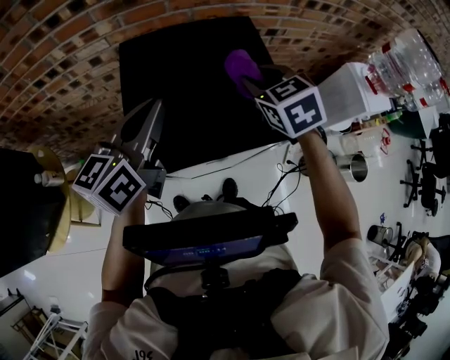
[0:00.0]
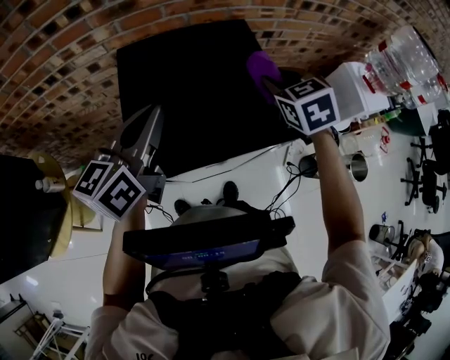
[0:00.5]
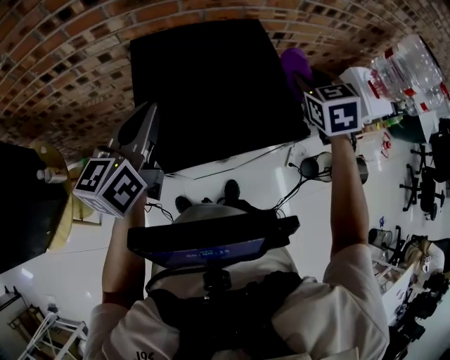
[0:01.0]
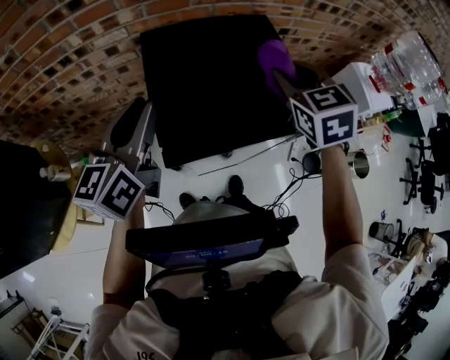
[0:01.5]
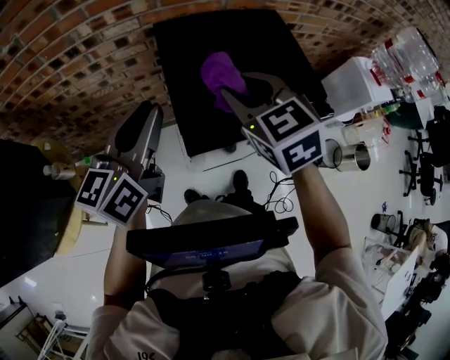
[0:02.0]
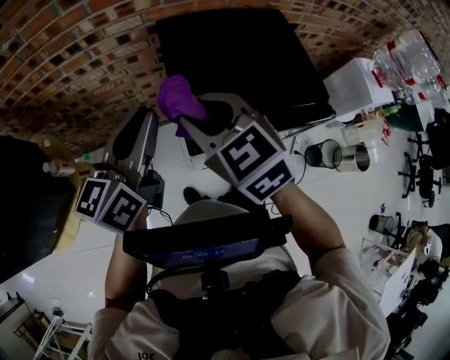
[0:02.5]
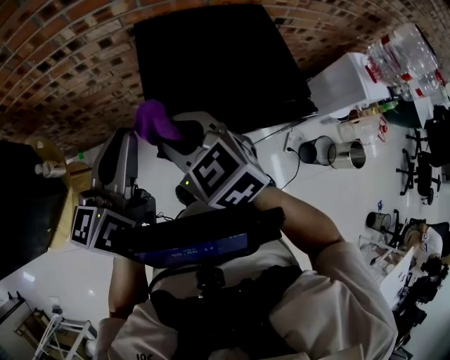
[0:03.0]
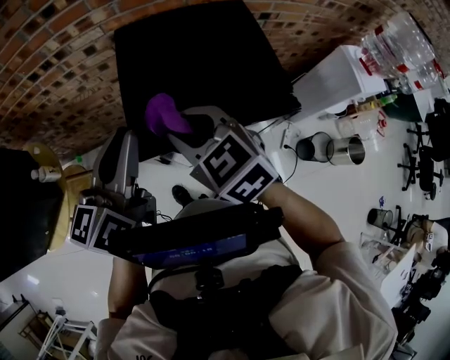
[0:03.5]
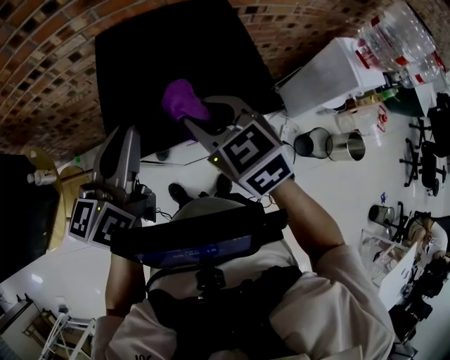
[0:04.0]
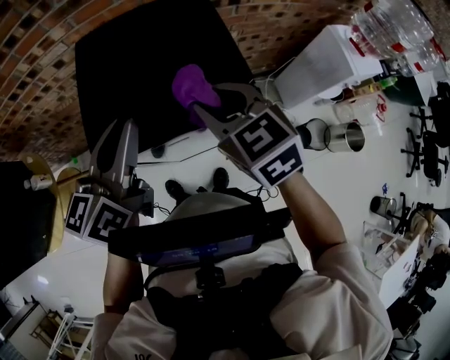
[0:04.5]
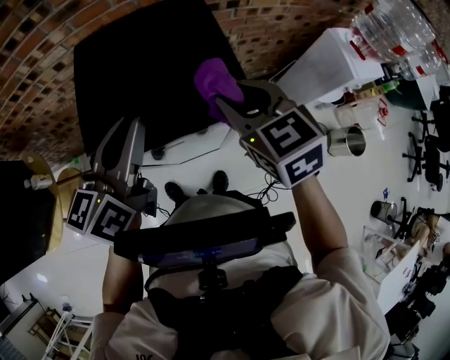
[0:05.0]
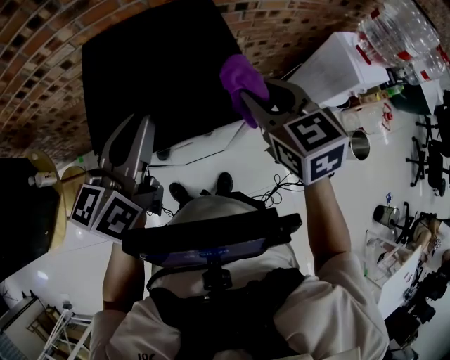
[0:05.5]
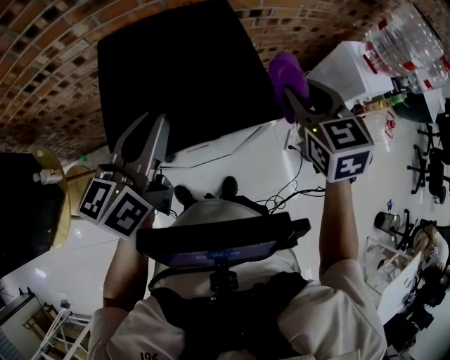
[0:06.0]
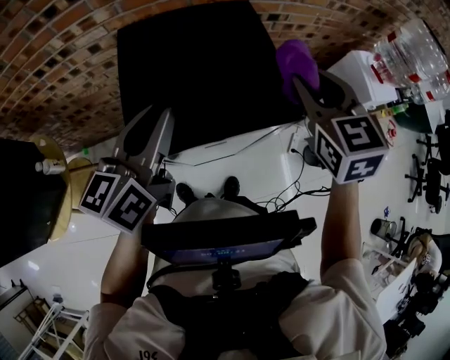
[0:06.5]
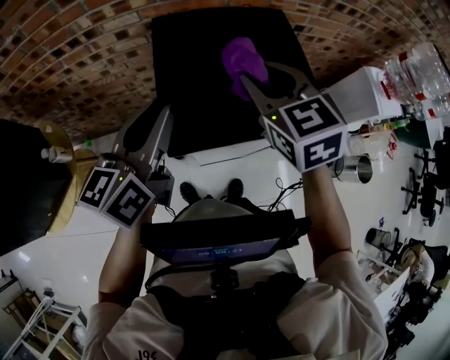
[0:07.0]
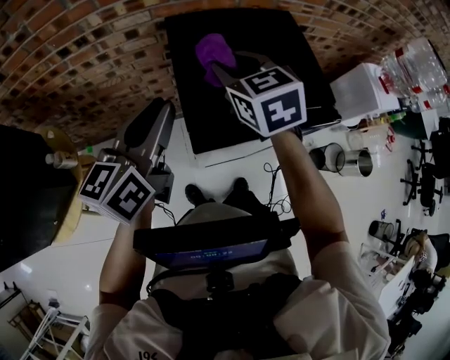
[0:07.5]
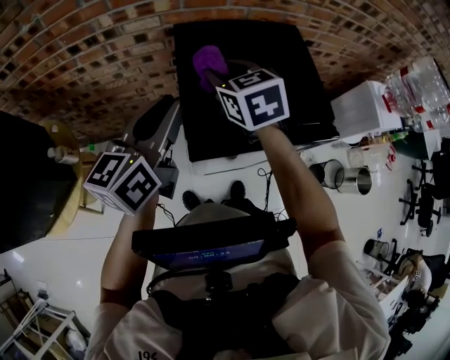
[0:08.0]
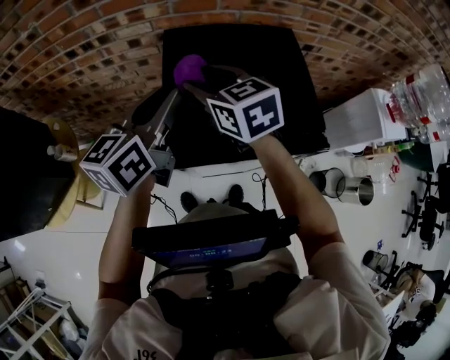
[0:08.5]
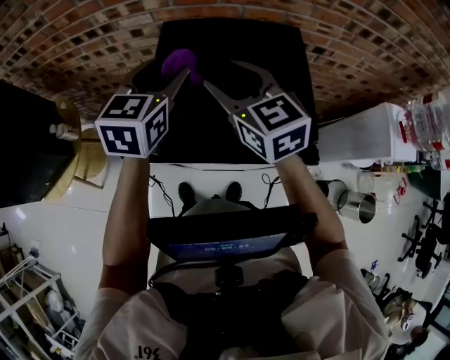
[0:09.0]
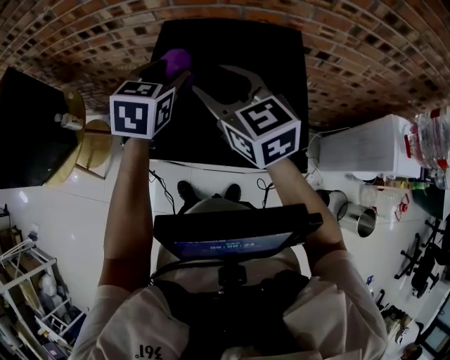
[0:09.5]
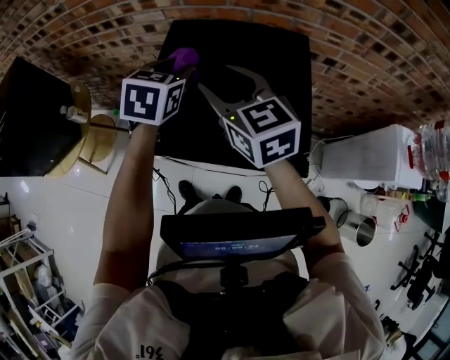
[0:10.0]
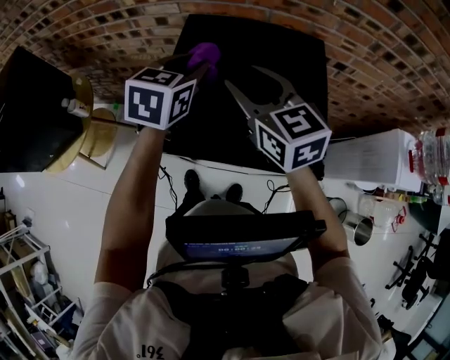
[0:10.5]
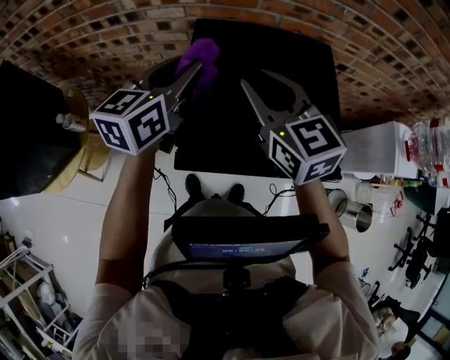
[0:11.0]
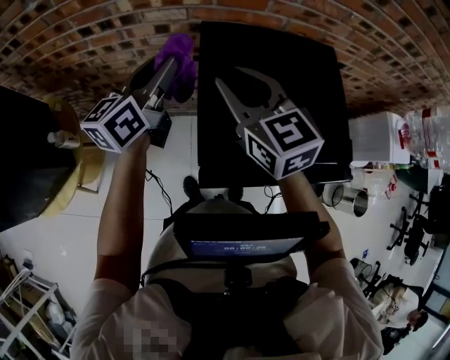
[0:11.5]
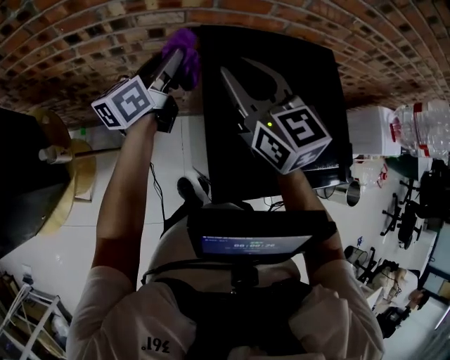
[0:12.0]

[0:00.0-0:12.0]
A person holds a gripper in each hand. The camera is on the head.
0.0 to 2.0 s: The grippers both shift to the left and backward by roughly 15 cm.
2.0 to 4.0 s: The right gripper is displaced to the right and backward by roughly 10 cm. The left gripper shifts roughly 10 cm to the right.
4.0 to 6.0 s: The left gripper travels to the right by about 5 cm, while the right gripper shifts about 20 cm to the right, and rotates approximately 30 degrees.
6.0 to 8.0 s: The left gripper is displaced to the left by about 15 cm, while the right gripper goes about 35 cm to the left.
8.0 to 10.0 s: The left gripper moves to the right, forward and downward, some 15 cm, tilts its fingers approximately 30 degrees downward, and opens, then closes once more, while the right gripper moves to the right, roughly 5 cm, and swivels some 30 degrees.
10.0 to 12.0 s: The right gripper is displaced to the left and forward by approximately 15 cm, and closes; the left gripper heads forward and to the left, covering approximately 15 cm, and tips its fingers upward by approximately 40 degrees.

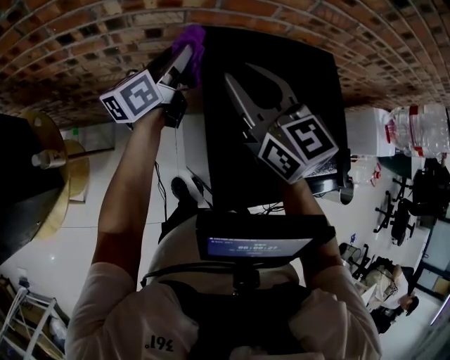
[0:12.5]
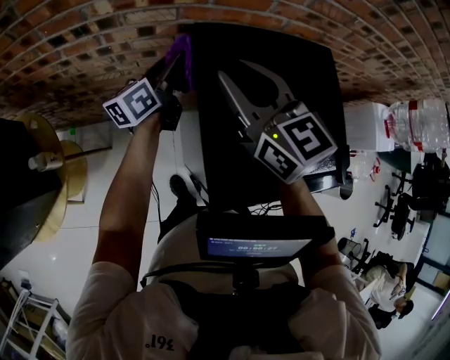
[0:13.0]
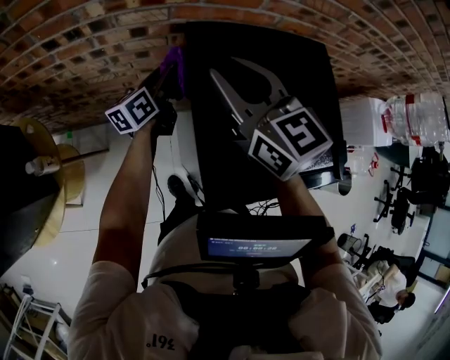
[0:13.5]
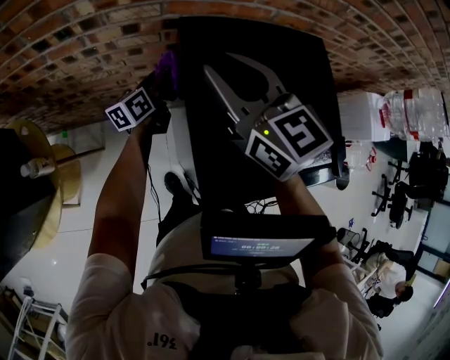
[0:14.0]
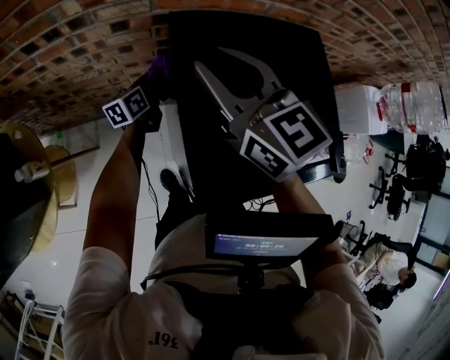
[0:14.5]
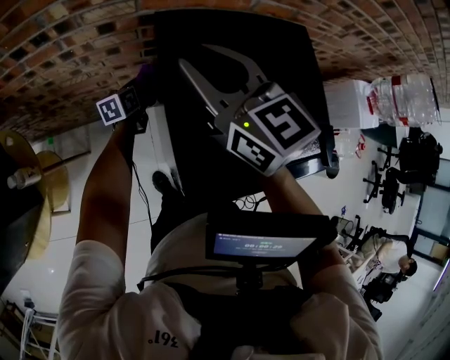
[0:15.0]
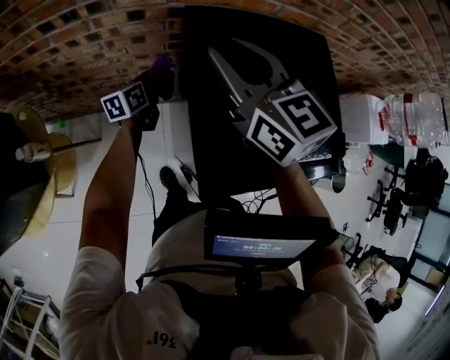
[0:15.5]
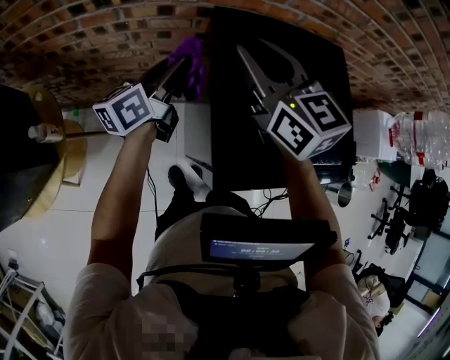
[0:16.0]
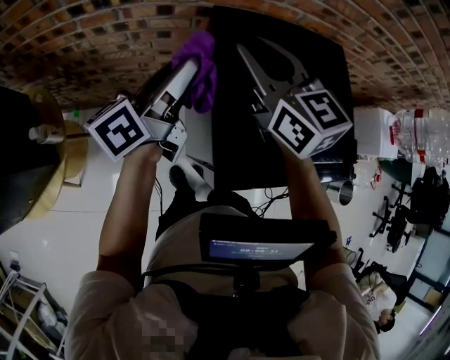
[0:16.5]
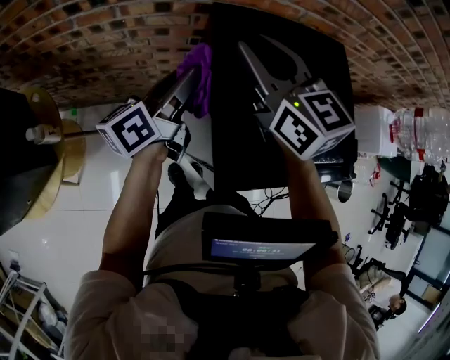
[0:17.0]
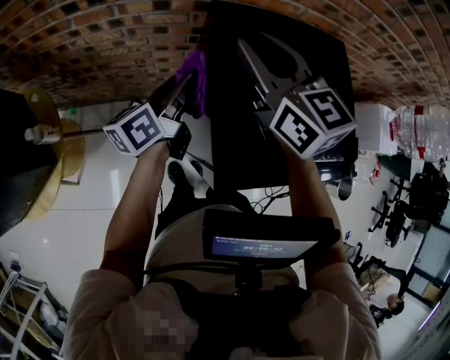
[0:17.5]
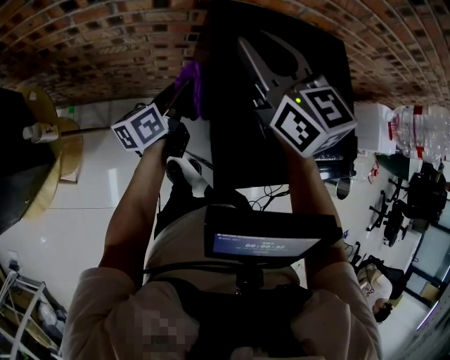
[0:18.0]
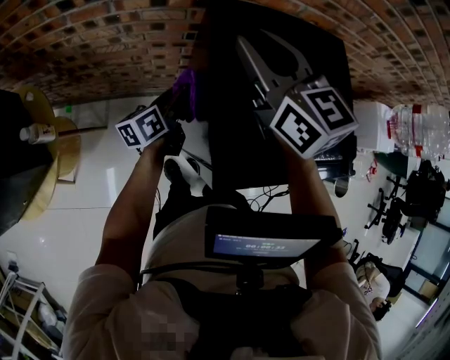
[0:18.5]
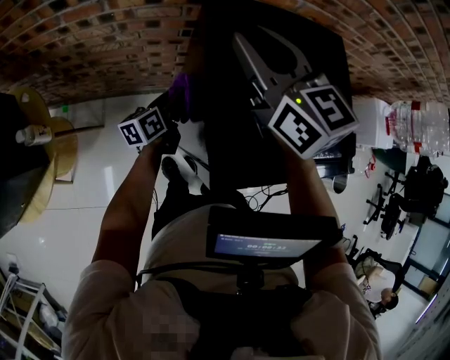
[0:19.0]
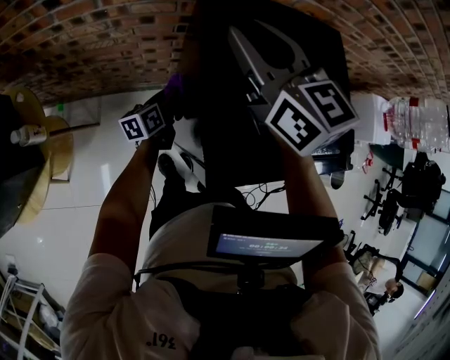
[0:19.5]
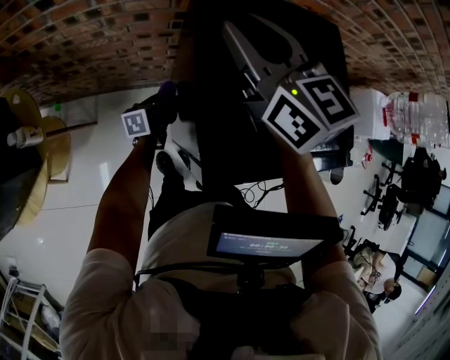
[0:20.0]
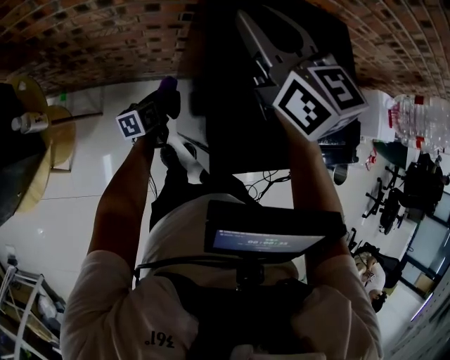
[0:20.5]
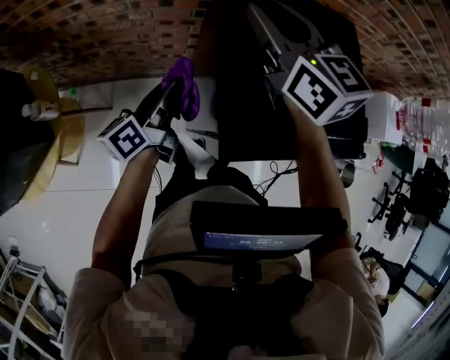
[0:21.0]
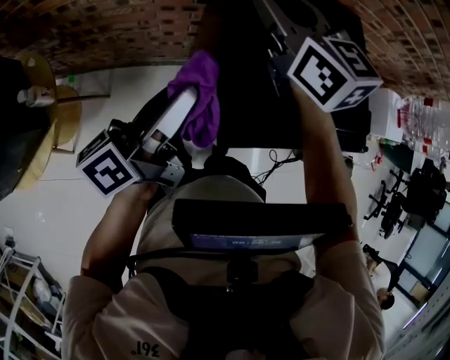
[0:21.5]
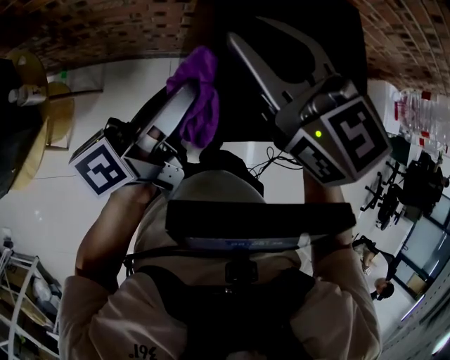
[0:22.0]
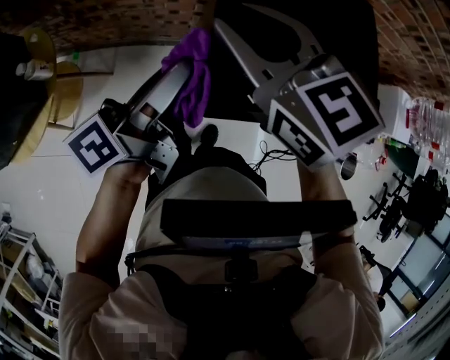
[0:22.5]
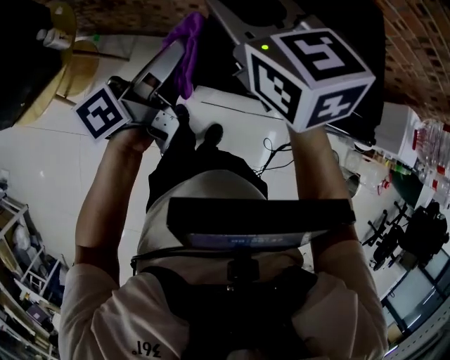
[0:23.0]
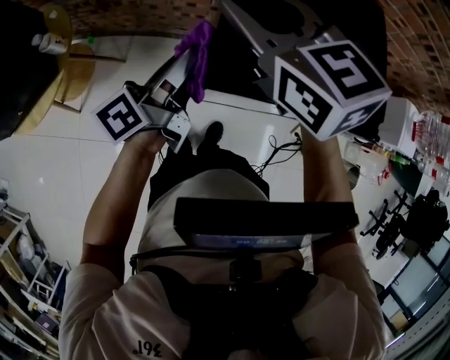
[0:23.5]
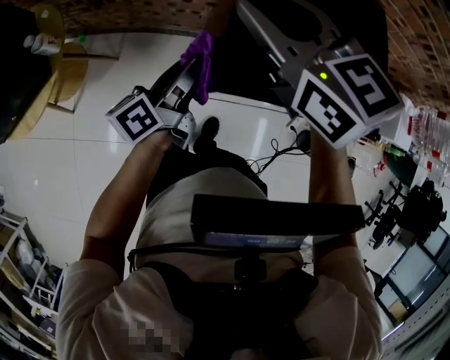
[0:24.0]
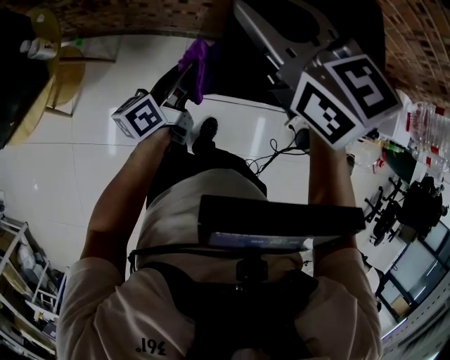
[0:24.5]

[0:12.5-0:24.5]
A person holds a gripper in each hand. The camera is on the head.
12.5 to 14.5 s: The left gripper is displaced downward by approximately 20 cm.
14.5 to 16.5 s: The left gripper moves upward and backward, roughly 30 cm, and turns by some 30 degrees.
16.5 to 18.5 s: The left gripper shifts about 20 cm downward, and changes its angle by some 20 degrees.
18.5 to 20.5 s: The left gripper shifts approximately 15 cm downward, and swivels roughly 20 degrees.
20.5 to 22.5 s: The right gripper shifts roughly 10 cm backward. The left gripper heads upward, covering about 30 cm, and angles its fingers upward, by approximately 40 degrees.
22.5 to 24.5 s: The left gripper moves downward, about 15 cm.

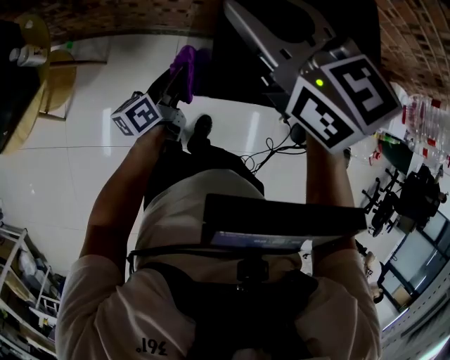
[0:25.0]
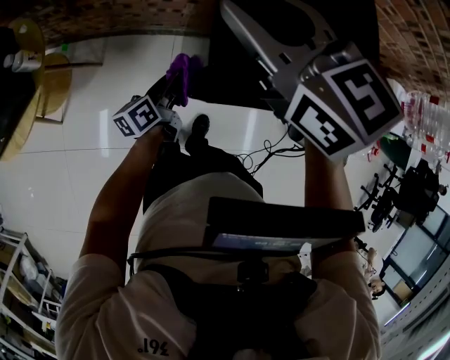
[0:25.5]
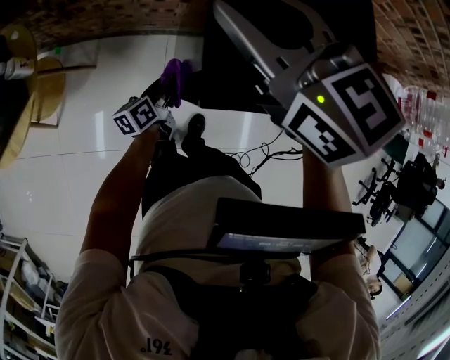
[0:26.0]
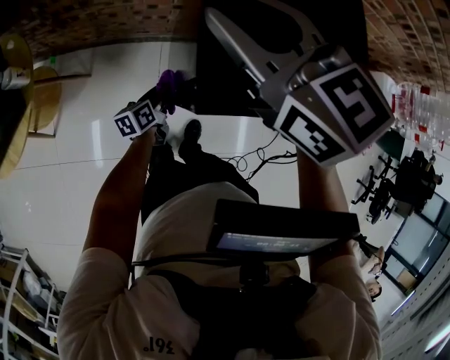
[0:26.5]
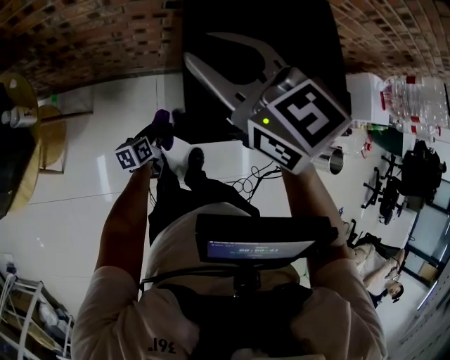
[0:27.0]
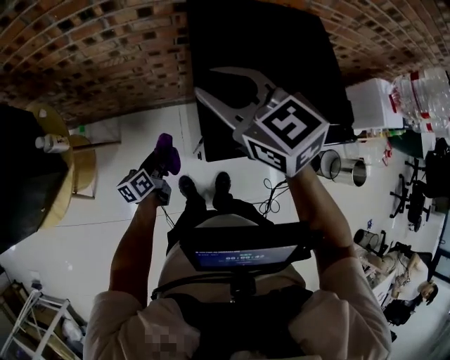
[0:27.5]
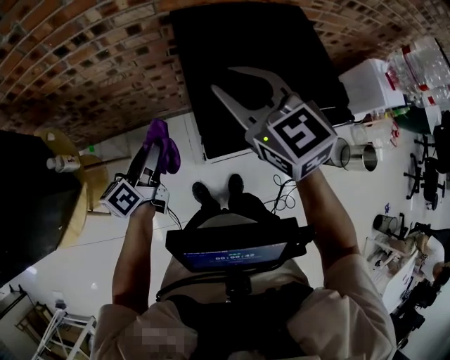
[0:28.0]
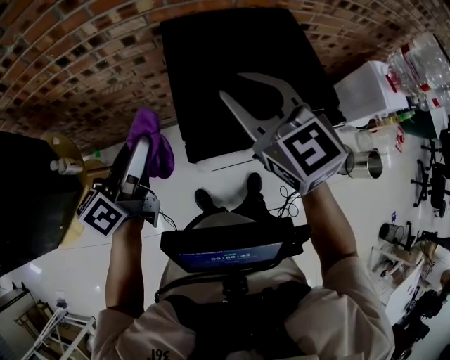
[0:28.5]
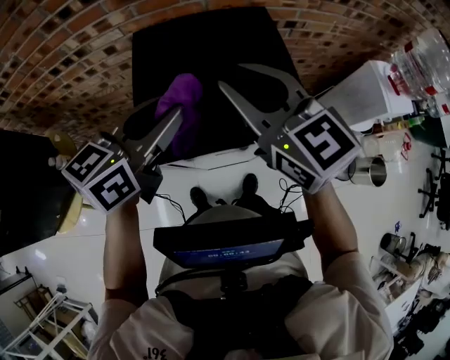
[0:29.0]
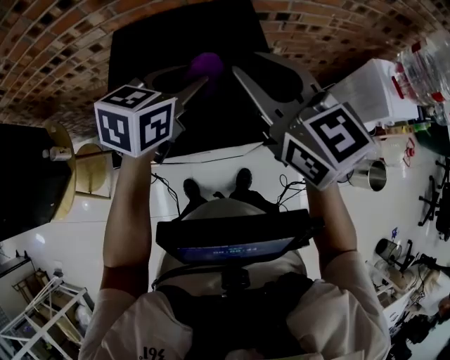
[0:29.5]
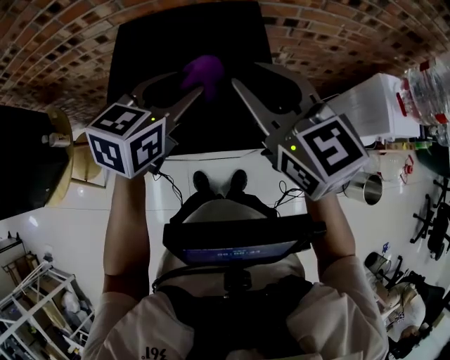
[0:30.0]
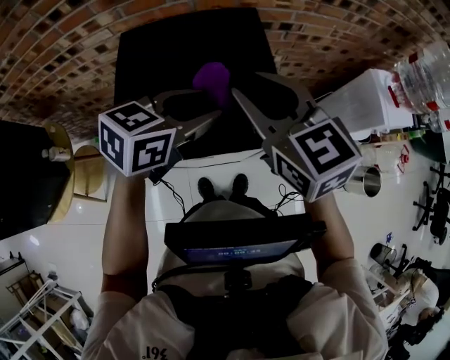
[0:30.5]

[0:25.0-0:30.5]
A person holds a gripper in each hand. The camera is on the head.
25.0 to 27.0 s: The left gripper travels downward by about 15 cm, and turns by approximately 30 degrees.
27.0 to 28.5 s: The right gripper is displaced to the right and upward by roughly 10 cm. The left gripper is displaced upward by approximately 40 cm, and tips its fingers upward by approximately 30 degrees.
28.5 to 30.5 s: The left gripper moves to the right, some 30 cm, and turns by roughly 50 degrees. The right gripper moves to the right, roughly 15 cm.
